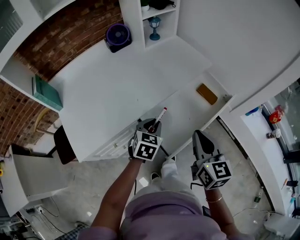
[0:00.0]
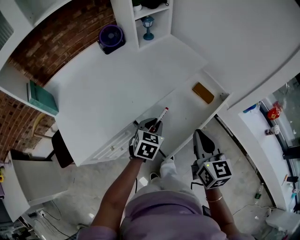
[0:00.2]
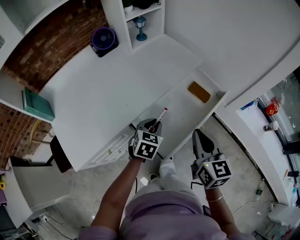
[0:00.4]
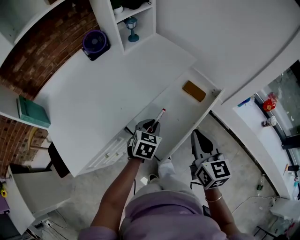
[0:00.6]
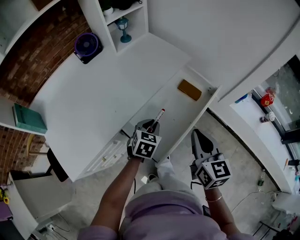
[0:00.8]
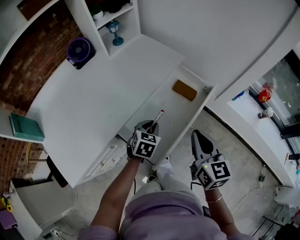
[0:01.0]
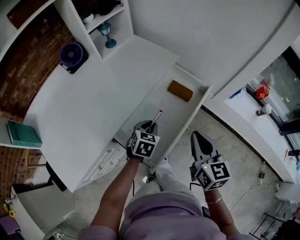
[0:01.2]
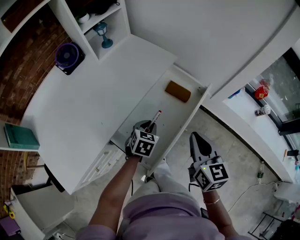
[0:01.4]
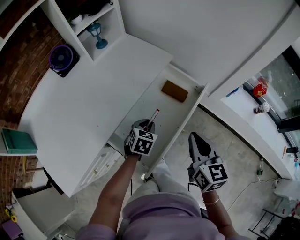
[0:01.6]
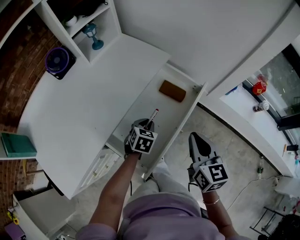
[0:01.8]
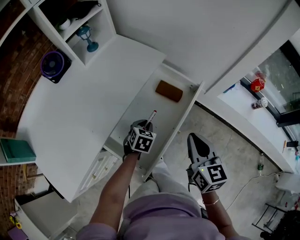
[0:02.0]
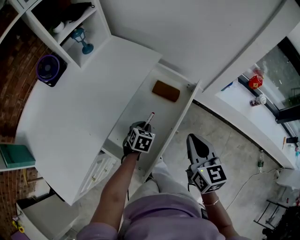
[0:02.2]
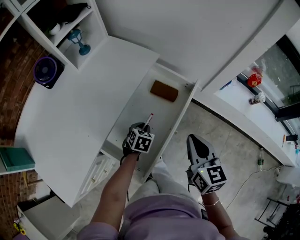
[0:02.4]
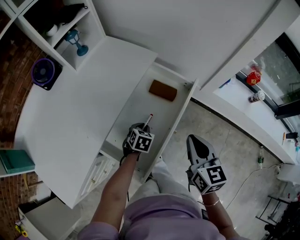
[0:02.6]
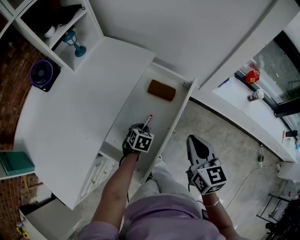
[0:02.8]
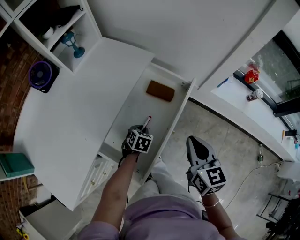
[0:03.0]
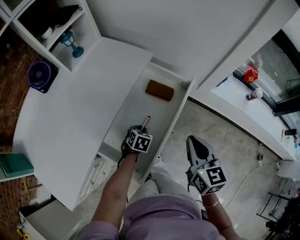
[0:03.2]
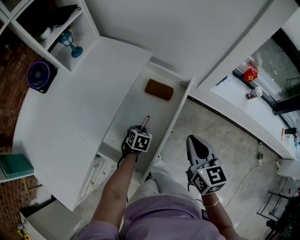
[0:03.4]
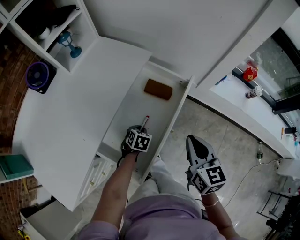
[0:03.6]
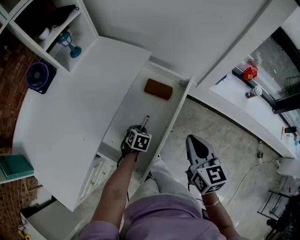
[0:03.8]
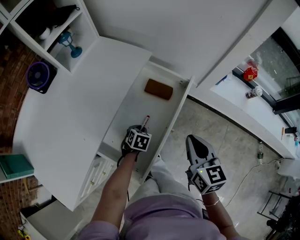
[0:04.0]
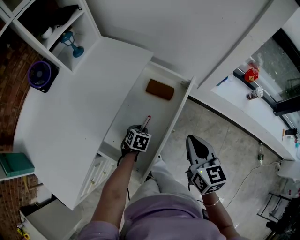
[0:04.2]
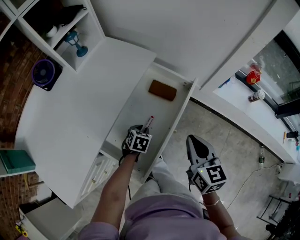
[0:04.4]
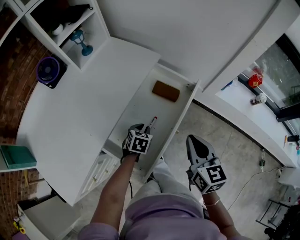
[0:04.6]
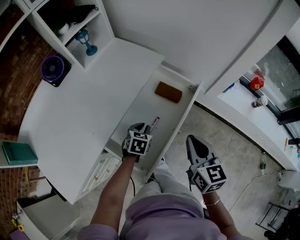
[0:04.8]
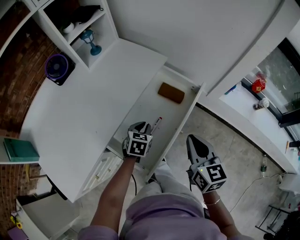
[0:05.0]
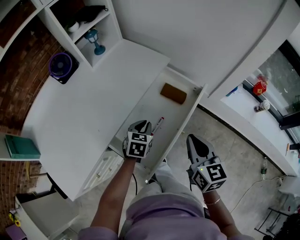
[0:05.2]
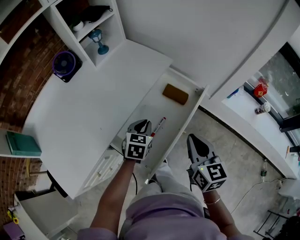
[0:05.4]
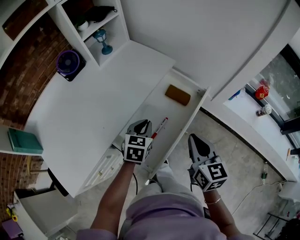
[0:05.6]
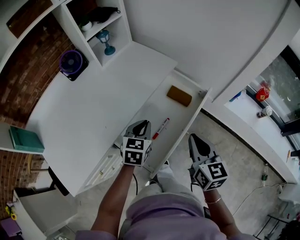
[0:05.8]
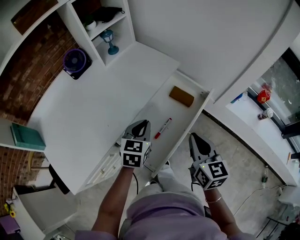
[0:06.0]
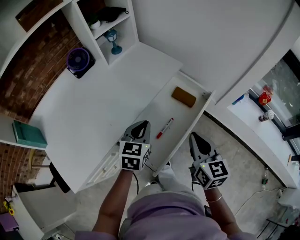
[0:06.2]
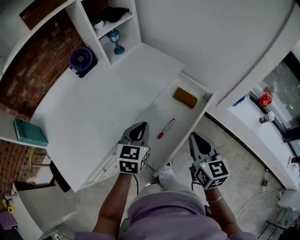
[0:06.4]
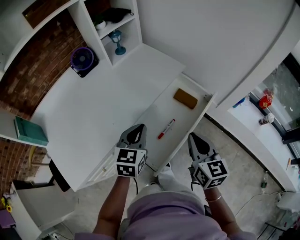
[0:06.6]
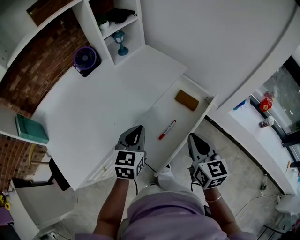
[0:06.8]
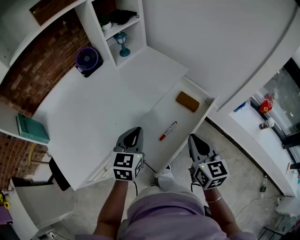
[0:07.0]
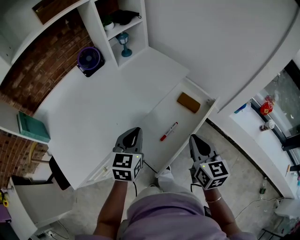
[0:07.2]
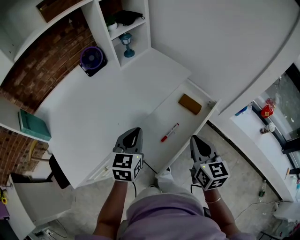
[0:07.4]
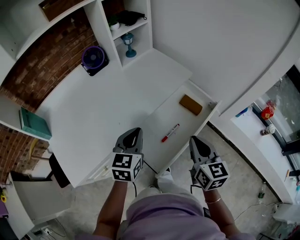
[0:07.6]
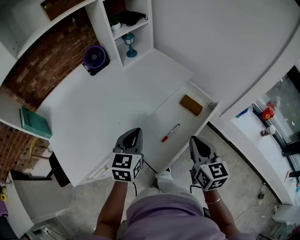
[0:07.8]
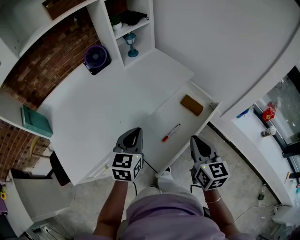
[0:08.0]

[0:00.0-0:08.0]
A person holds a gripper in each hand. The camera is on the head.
0:00.0 to 0:01.6: The right gripper goes some 15 cm to the right and forward, while the left gripper heads to the right, forward and downward, covering approximately 20 cm.
0:01.6 to 0:03.2: The right gripper moves about 5 cm, while the left gripper travels downward by about 10 cm.
0:03.2 to 0:04.8: The left gripper travels upward by approximately 5 cm.
0:04.8 to 0:06.4: The left gripper moves upward, roughly 20 cm, and rotates some 30 degrees, while the right gripper travels to the left by about 5 cm.
0:06.4 to 0:08.0: The left gripper heads to the left, covering approximately 5 cm.

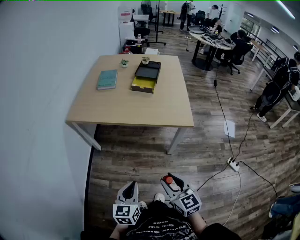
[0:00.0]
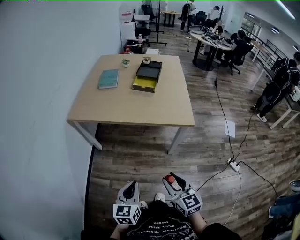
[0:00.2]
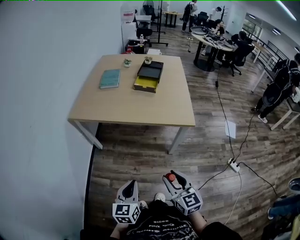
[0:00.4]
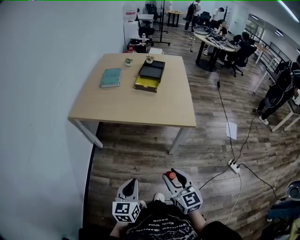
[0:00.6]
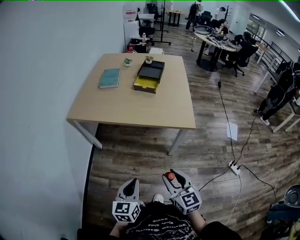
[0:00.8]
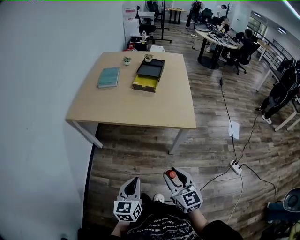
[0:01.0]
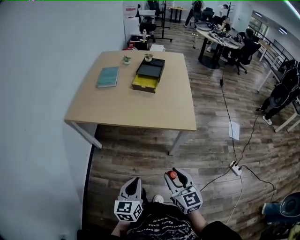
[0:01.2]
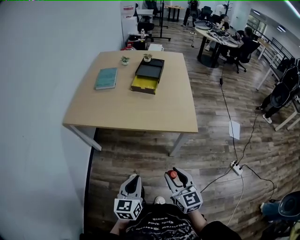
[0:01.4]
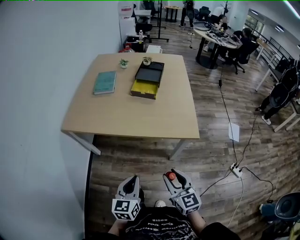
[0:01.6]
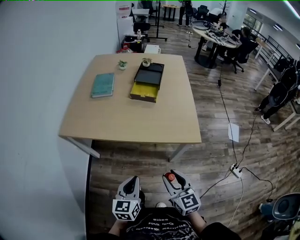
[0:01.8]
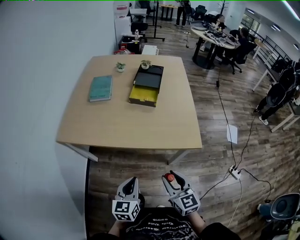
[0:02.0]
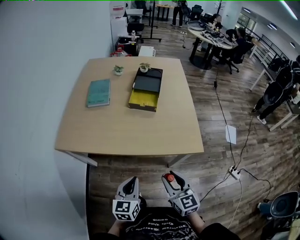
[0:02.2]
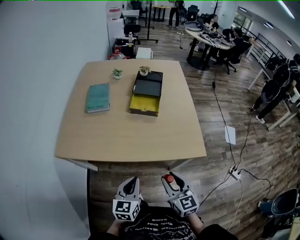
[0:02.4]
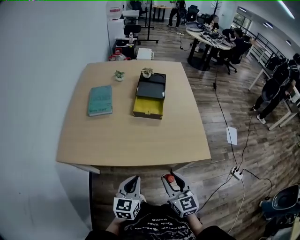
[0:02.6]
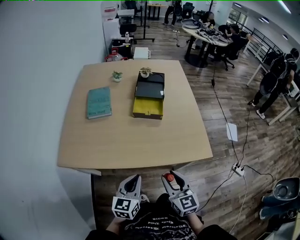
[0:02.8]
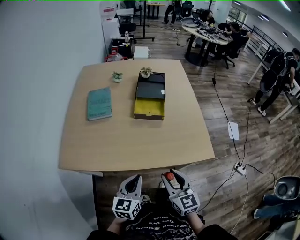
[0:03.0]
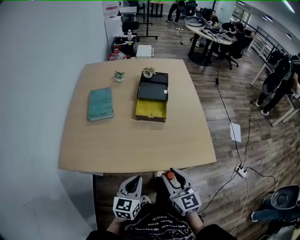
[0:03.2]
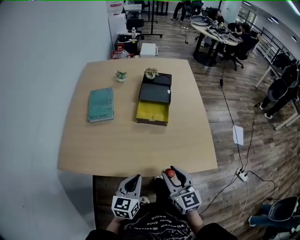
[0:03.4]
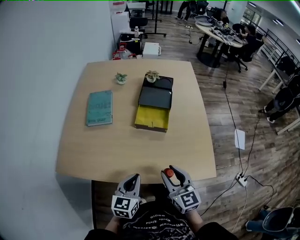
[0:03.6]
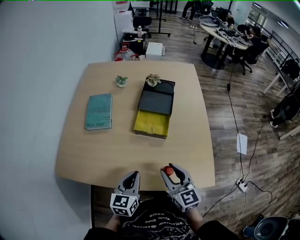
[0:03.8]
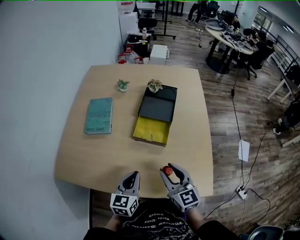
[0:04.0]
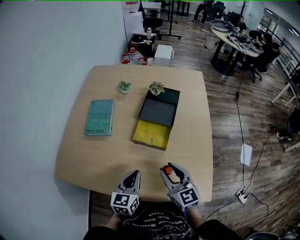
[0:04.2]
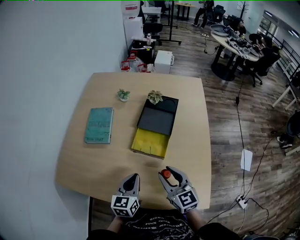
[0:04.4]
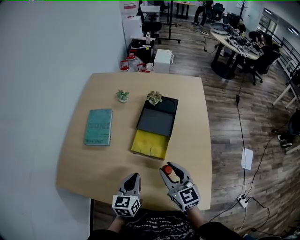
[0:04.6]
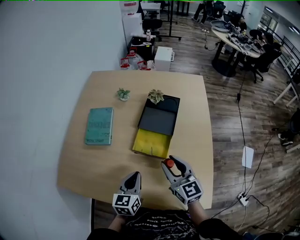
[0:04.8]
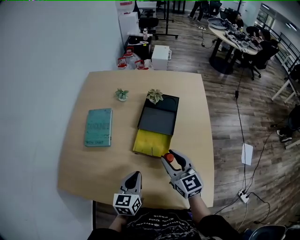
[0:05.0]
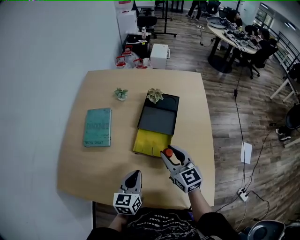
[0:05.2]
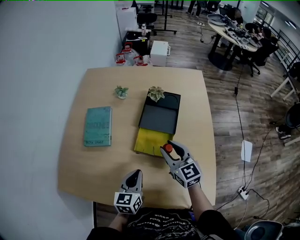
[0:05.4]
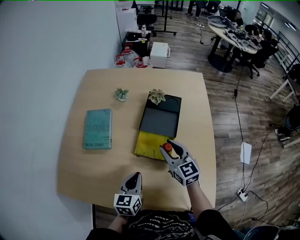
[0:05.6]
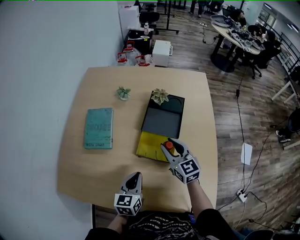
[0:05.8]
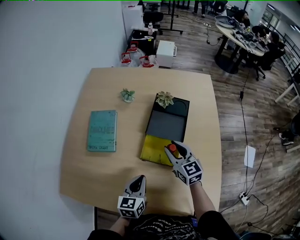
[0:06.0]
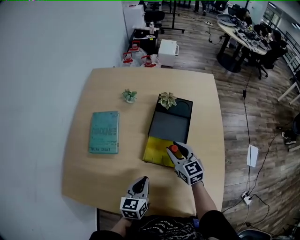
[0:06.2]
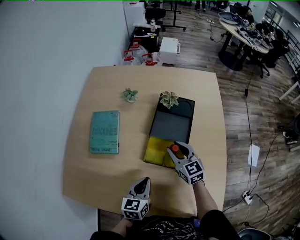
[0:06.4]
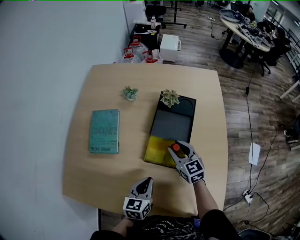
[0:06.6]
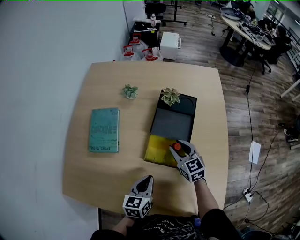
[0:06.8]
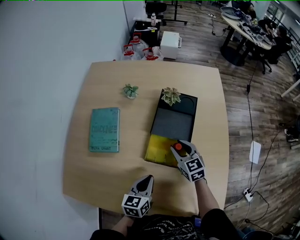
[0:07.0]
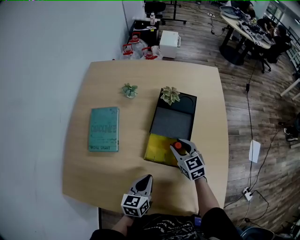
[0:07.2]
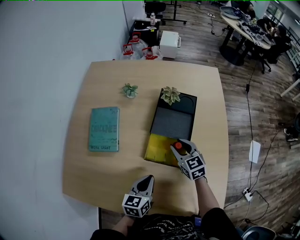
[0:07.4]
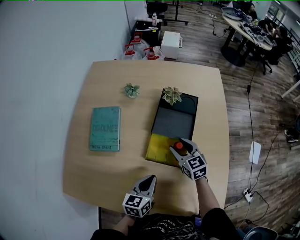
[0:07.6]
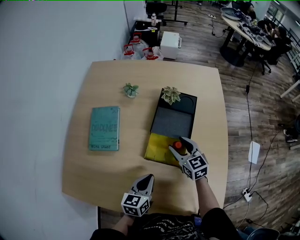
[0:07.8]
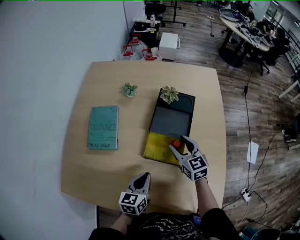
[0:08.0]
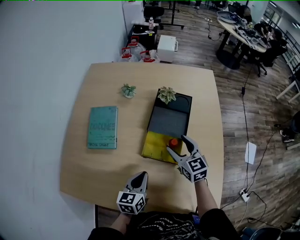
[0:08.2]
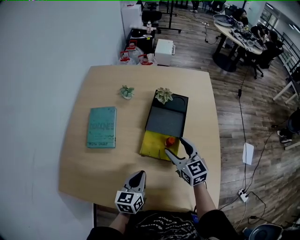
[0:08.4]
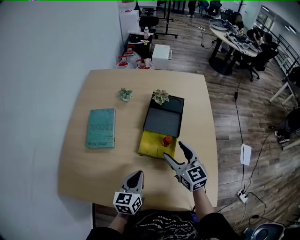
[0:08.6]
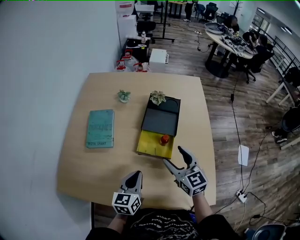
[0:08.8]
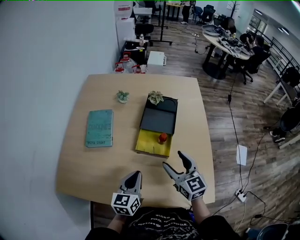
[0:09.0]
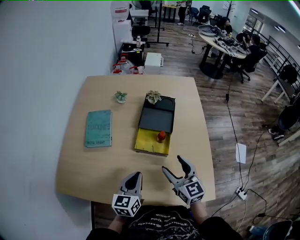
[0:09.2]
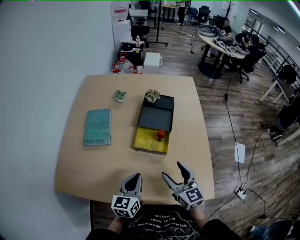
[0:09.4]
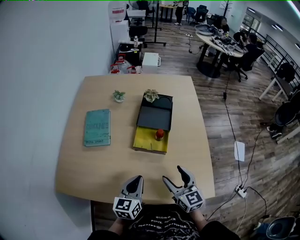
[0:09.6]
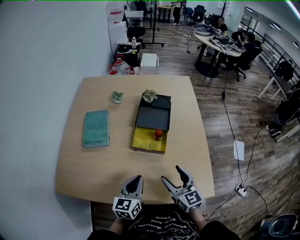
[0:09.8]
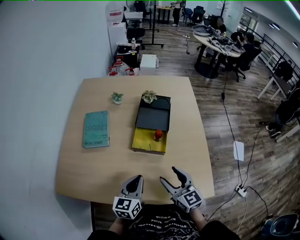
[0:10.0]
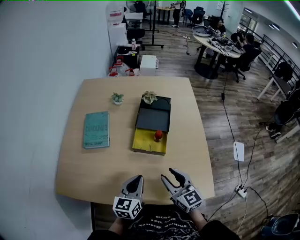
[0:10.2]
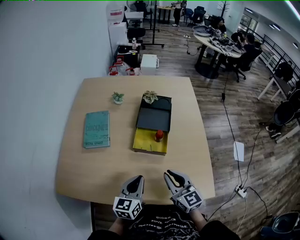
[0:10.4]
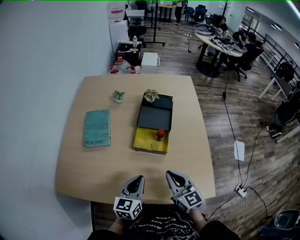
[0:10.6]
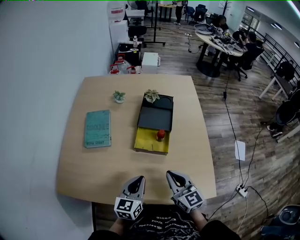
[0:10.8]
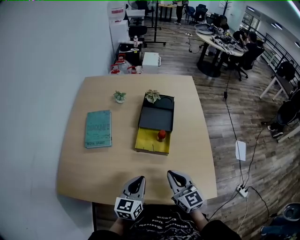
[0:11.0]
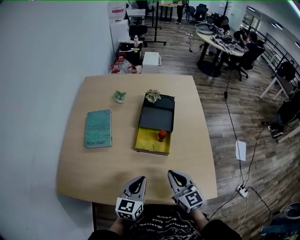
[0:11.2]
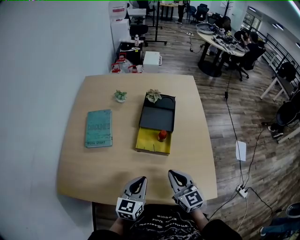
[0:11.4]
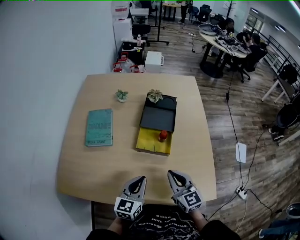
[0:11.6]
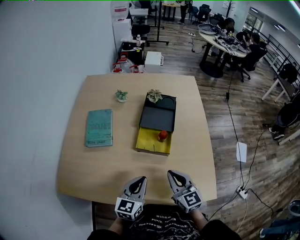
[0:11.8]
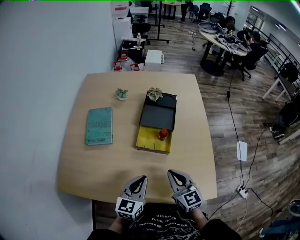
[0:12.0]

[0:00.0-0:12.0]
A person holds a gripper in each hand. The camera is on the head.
0:00.0 to 0:01.6: Both grippers move forward, roughly 15 cm.
0:01.6 to 0:03.0: The left gripper heads forward, covering roughly 25 cm. Meanwhile the right gripper moves forward and to the left, roughly 25 cm.
0:03.0 to 0:04.4: The grippers both shift forward by roughly 25 cm.
0:04.4 to 0:06.0: The right gripper moves forward, roughly 20 cm. Meanwhile the left gripper shifts approximately 5 cm forward.
0:06.0 to 0:07.6: The right gripper heads downward, covering roughly 5 cm.
0:07.6 to 0:09.0: The right gripper heads backward and upward, covering roughly 20 cm; the left gripper shifts approximately 10 cm upward and backward.
0:09.0 to 0:10.4: The right gripper goes approximately 10 cm backward, and closes its fingers.
0:10.4 to 0:12.0: The grippers move only a little.

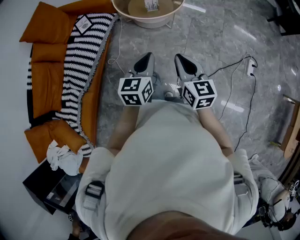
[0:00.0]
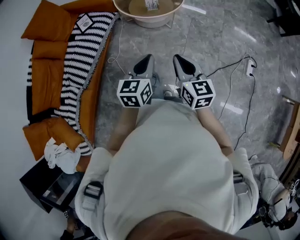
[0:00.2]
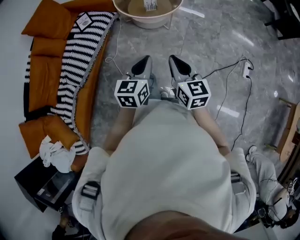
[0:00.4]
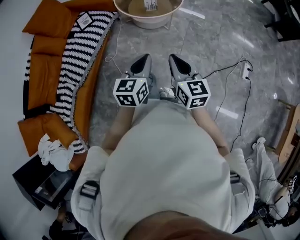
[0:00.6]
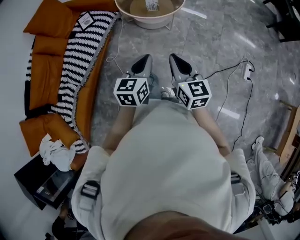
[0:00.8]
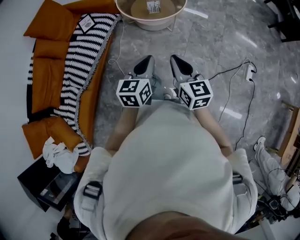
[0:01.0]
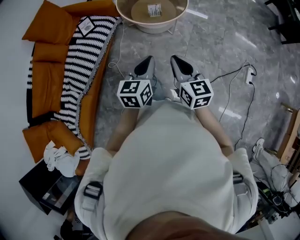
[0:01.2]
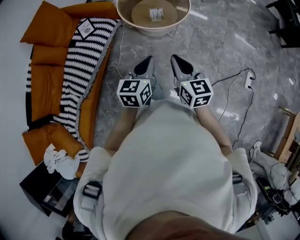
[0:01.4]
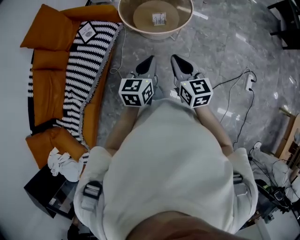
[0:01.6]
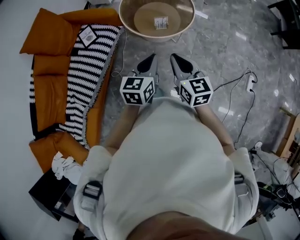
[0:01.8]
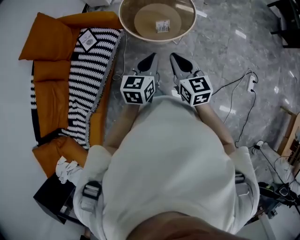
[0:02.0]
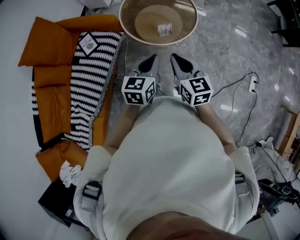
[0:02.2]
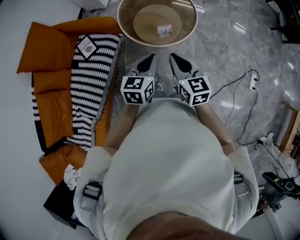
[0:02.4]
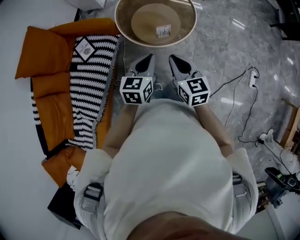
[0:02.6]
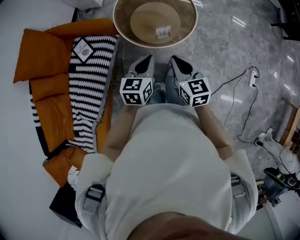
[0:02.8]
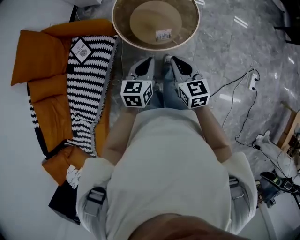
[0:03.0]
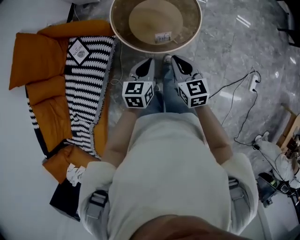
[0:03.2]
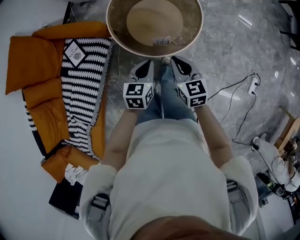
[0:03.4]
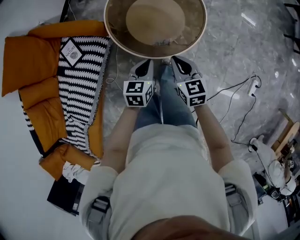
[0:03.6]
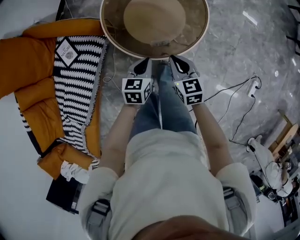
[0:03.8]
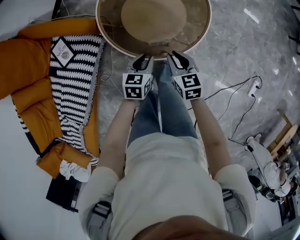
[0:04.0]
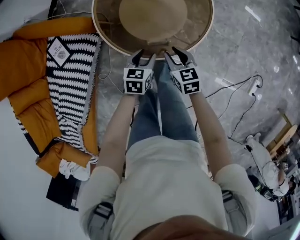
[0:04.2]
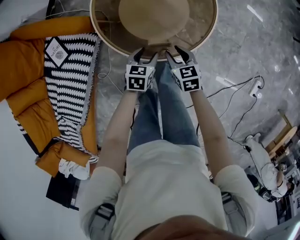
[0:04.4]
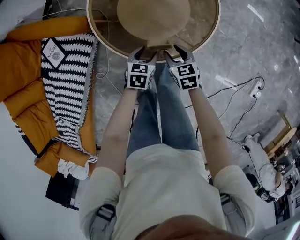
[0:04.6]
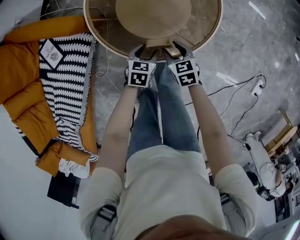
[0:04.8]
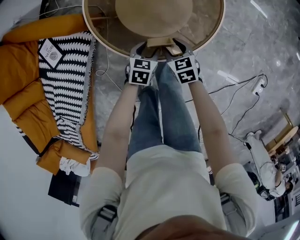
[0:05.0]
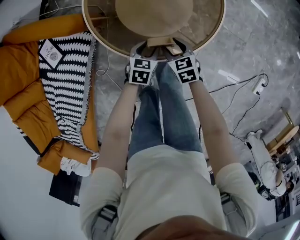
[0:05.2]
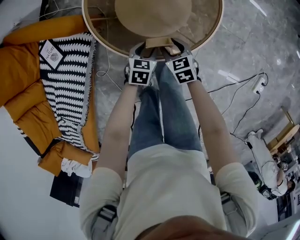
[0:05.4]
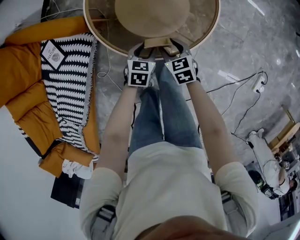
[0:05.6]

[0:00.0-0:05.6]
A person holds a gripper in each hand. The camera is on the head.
0:00.0 to 0:01.4: The grippers both shift forward by some 5 cm.
0:01.4 to 0:02.8: The grippers both shift forward by roughly 20 cm.
0:02.8 to 0:04.2: Both grippers travel together downward and forward, some 30 cm. The left gripper opens up. The right gripper swivels roughly 20 degrees, and opens.
0:04.2 to 0:05.6: Both grippers travel together downward, some 10 cm.
